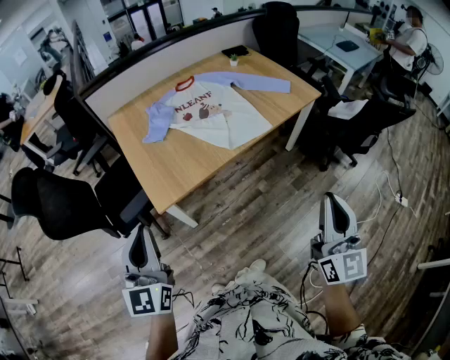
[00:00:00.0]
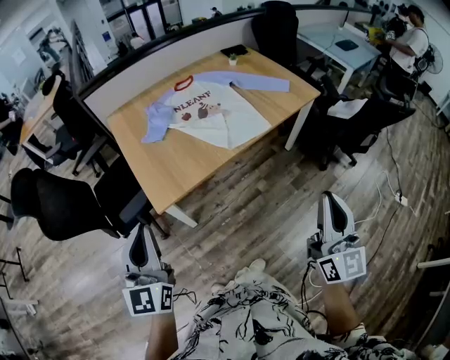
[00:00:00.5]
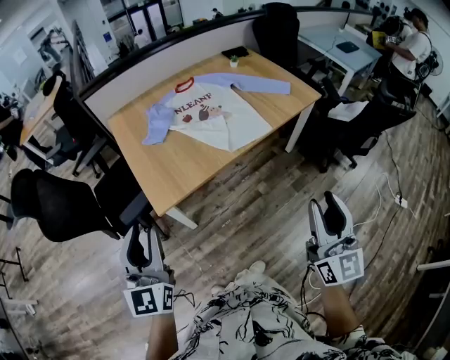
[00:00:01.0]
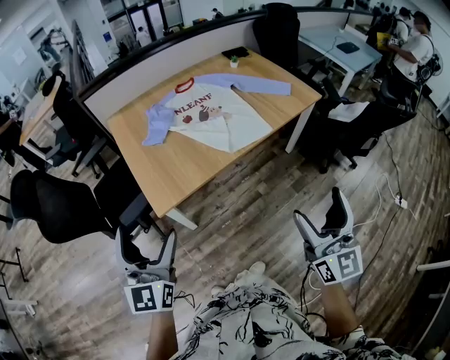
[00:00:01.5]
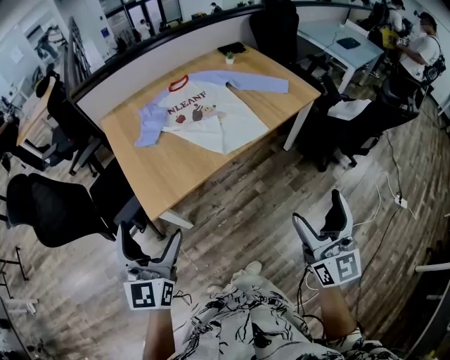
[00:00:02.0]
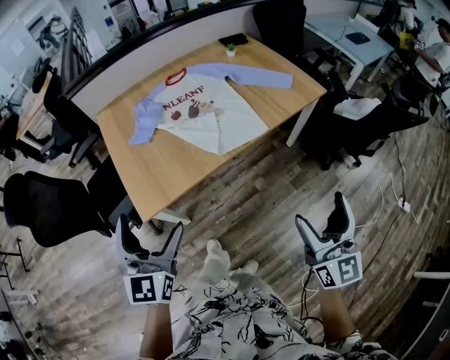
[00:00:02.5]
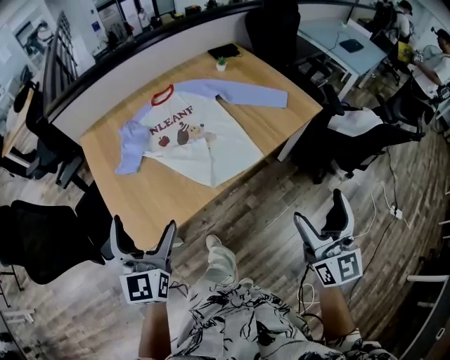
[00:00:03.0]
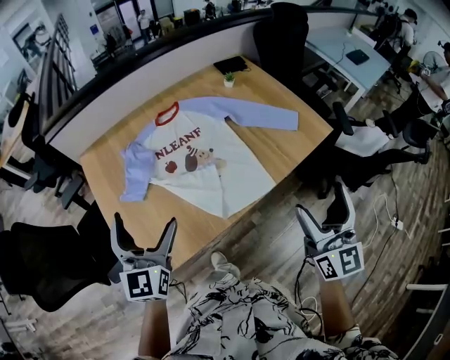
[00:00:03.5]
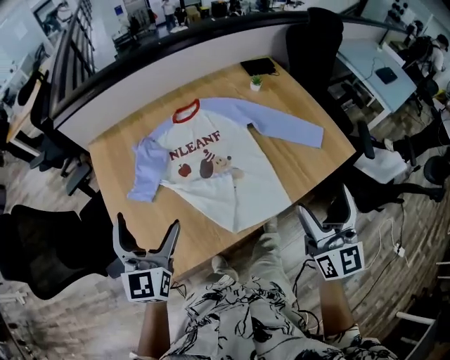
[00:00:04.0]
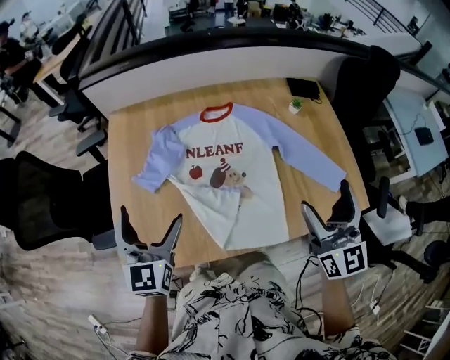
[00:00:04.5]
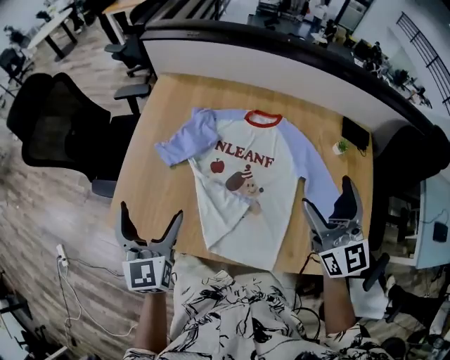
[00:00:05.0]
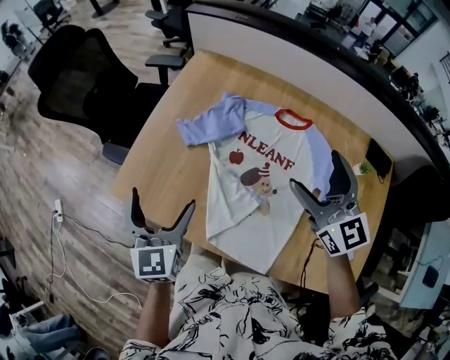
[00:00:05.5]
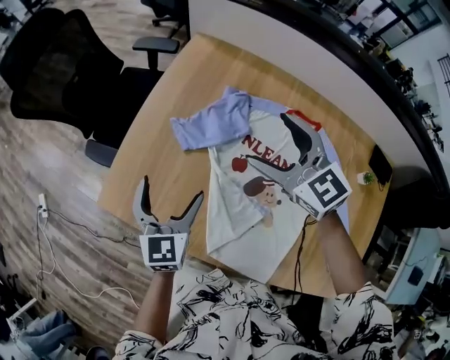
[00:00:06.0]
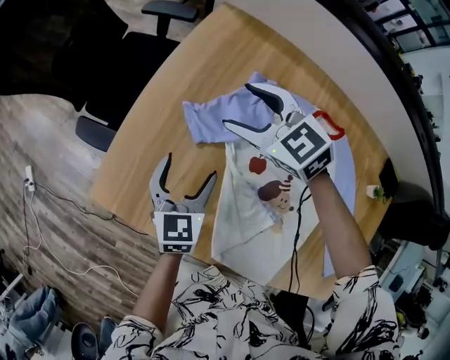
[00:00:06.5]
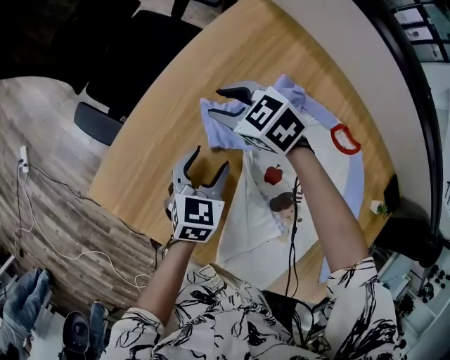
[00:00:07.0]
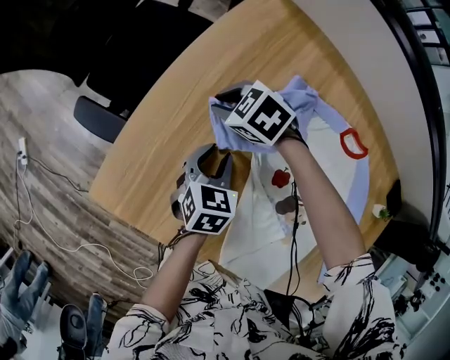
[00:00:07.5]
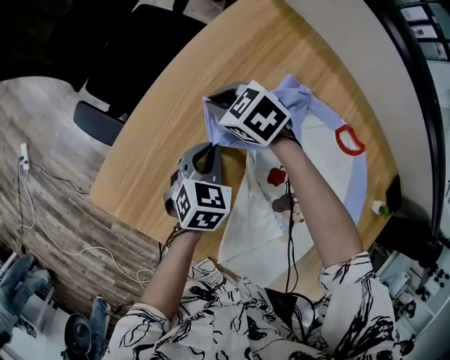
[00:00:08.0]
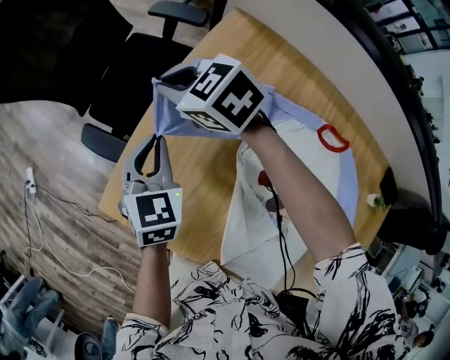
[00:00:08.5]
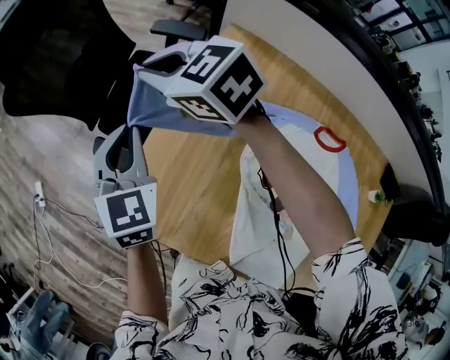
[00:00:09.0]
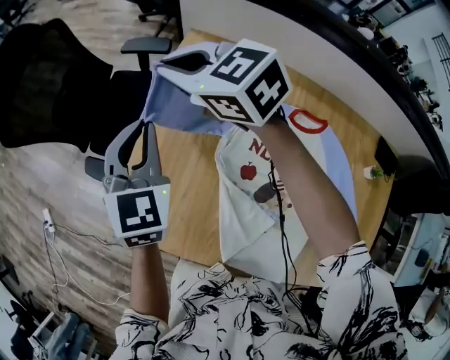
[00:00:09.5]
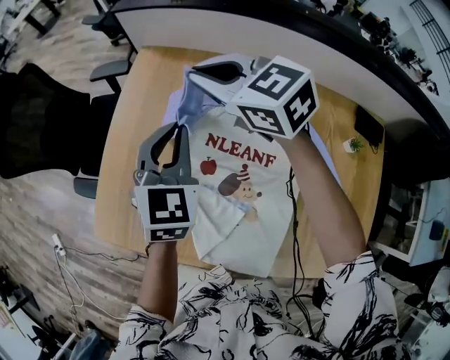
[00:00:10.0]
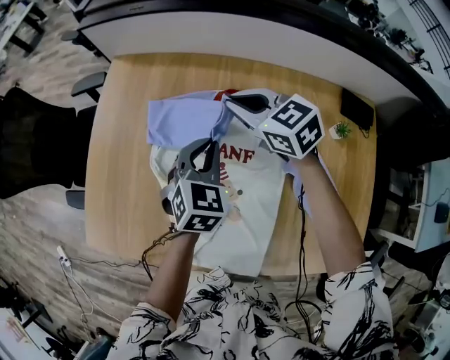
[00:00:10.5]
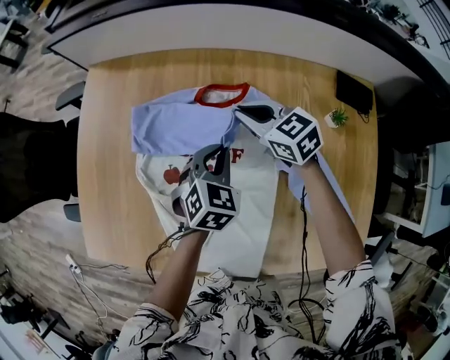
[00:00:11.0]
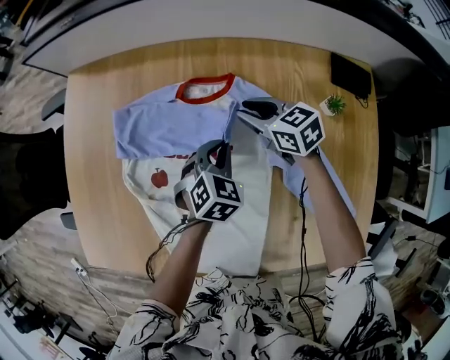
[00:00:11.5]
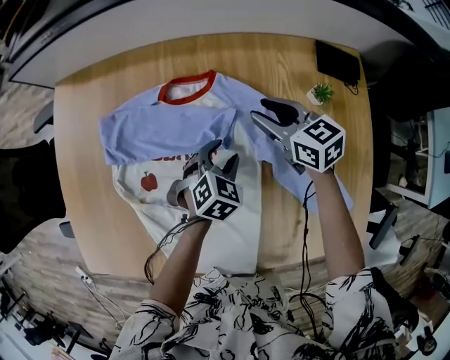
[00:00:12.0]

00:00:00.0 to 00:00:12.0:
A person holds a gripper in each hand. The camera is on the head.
00:00:00.0 to 00:00:02.0: The left gripper moves forward and to the right, about 5 cm, and opens its fingers; the right gripper ends up about 5 cm from where it was, and opens up.
00:00:02.0 to 00:00:04.0: The two grippers go about 40 cm forward.
00:00:04.0 to 00:00:06.0: The right gripper changes place by some 50 cm, and rotates about 90 degrees, while the left gripper is displaced downward by about 15 cm, and changes its angle by approximately 50 degrees.
00:00:06.0 to 00:00:08.0: The right gripper travels downward, forward and to the left by approximately 35 cm, angles its fingers downward, by some 40 degrees, and closes up; the left gripper goes approximately 20 cm downward and forward, changes its angle by roughly 30 degrees, and closes up.
00:00:08.0 to 00:00:10.0: The two grippers go approximately 30 cm upward. The left gripper swivels approximately 30 degrees; the right gripper angles its fingers upward, by some 30 degrees.
00:00:10.0 to 00:00:12.0: The left gripper ends up roughly 40 cm from where it was, and changes its angle by roughly 40 degrees. The right gripper shifts by approximately 40 cm, and swivels roughly 40 degrees.

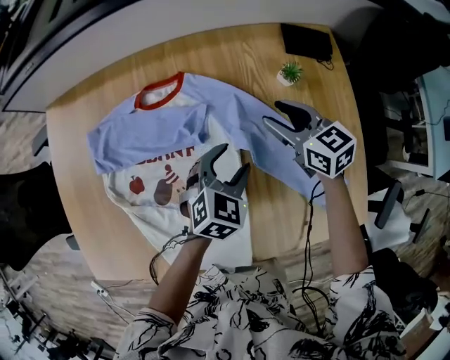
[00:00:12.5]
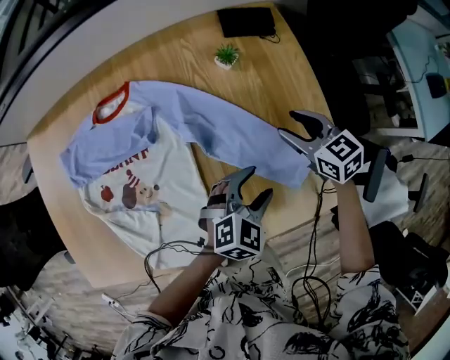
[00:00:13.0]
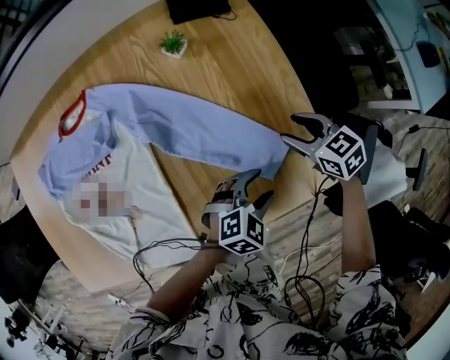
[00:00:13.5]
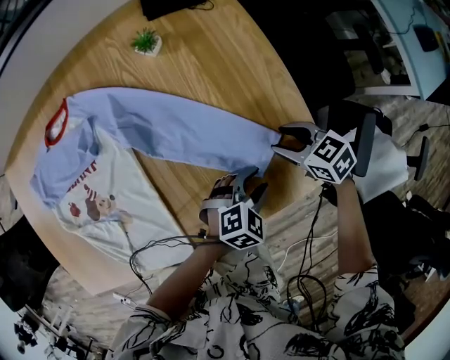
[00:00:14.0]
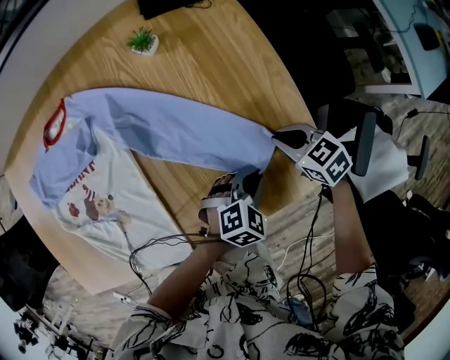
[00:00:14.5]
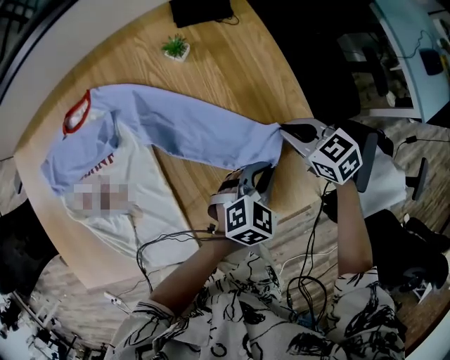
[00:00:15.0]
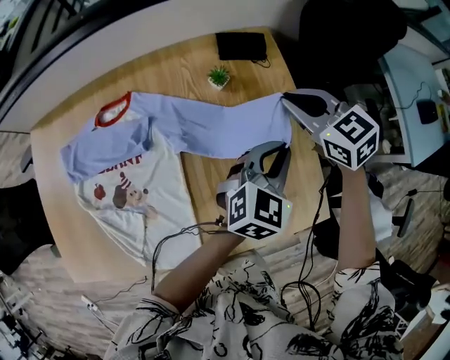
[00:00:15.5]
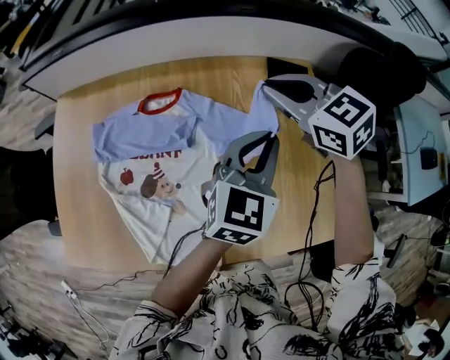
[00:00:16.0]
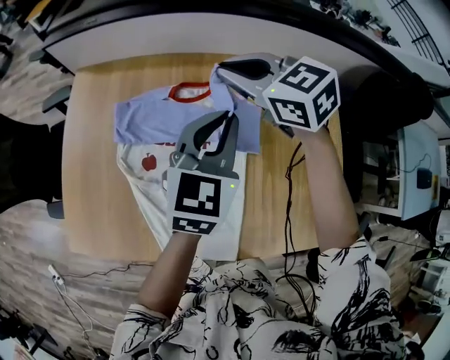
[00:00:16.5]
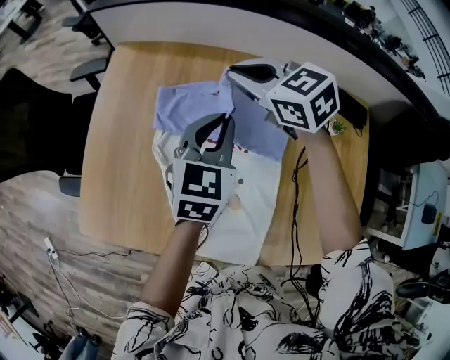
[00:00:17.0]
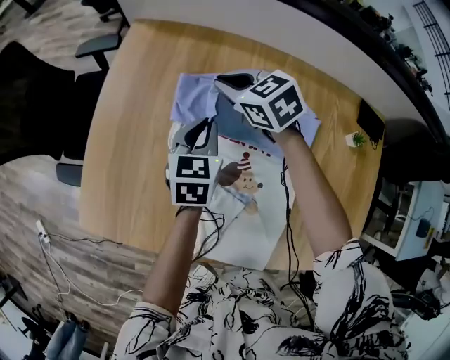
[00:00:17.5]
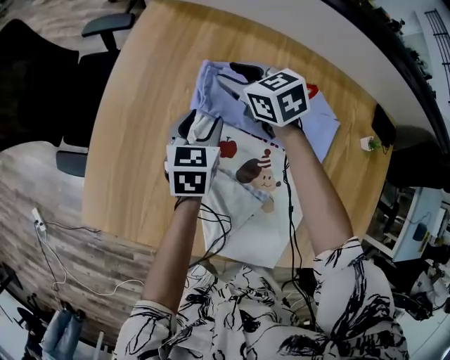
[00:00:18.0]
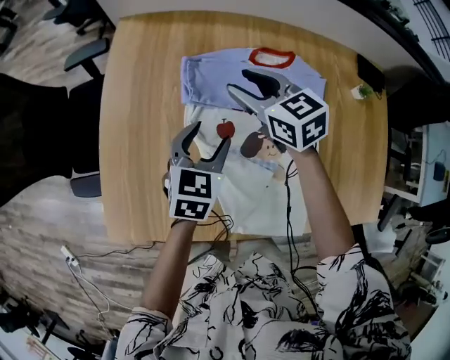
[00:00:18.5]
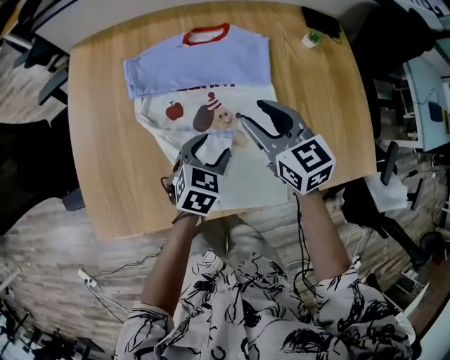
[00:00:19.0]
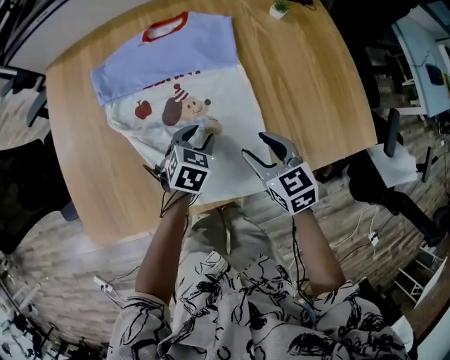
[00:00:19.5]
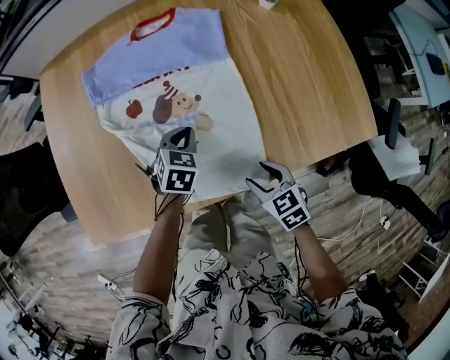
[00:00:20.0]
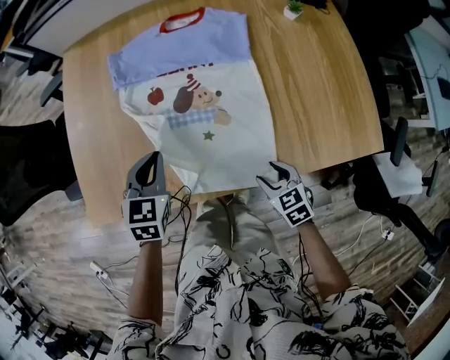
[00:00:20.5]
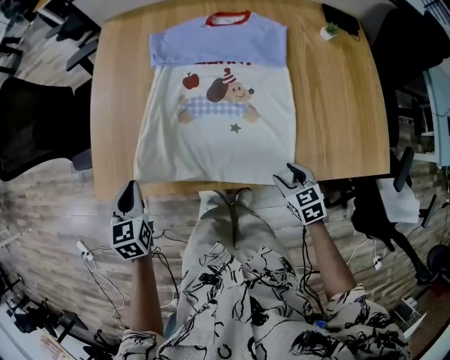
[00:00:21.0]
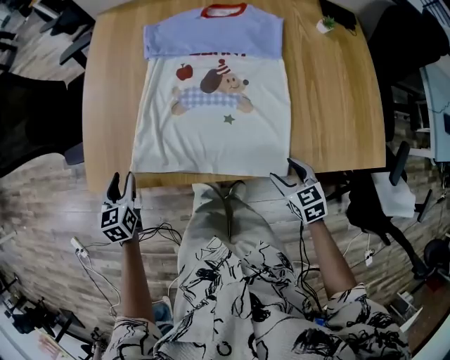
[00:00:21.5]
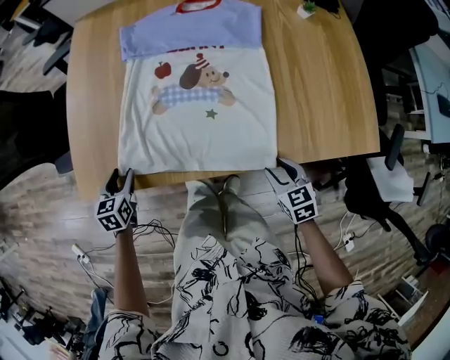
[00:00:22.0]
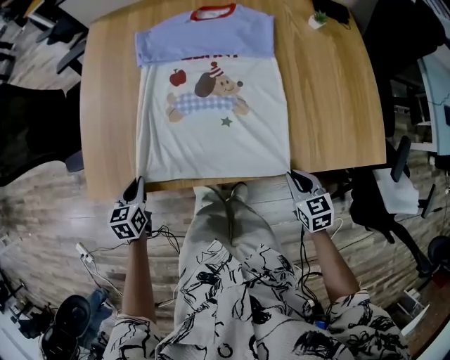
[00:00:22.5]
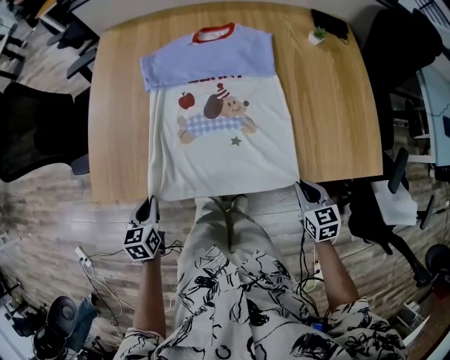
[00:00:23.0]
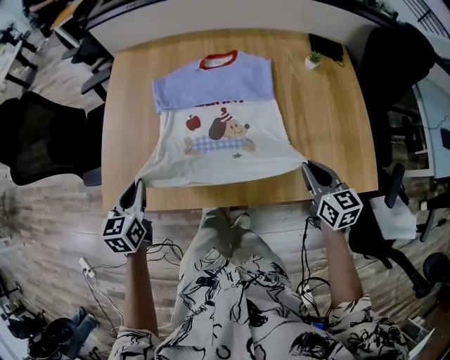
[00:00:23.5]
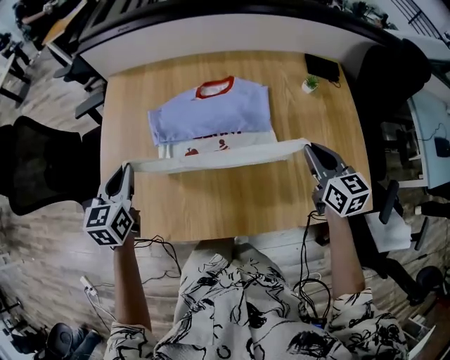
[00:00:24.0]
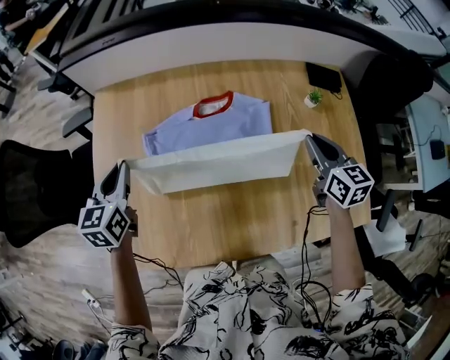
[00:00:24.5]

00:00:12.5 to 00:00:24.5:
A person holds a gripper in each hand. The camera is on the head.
00:00:12.5 to 00:00:14.5: The right gripper shifts by about 40 cm, turns by roughly 20 degrees, and closes; the left gripper changes place by some 40 cm, swivels approximately 30 degrees, and closes up.
00:00:14.5 to 00:00:16.5: Both grippers are carried approximately 50 cm. The left gripper points its fingers about 40 degrees further upward; the right gripper swivels roughly 40 degrees.
00:00:16.5 to 00:00:18.5: Both grippers move to the left and downward, about 30 cm. The right gripper opens up, while the left gripper opens its fingers.
00:00:18.5 to 00:00:20.5: The left gripper goes roughly 15 cm backward, travels to the right and back again, roughly 20 cm each way, and closes. The right gripper travels backward, to the right and downward by roughly 50 cm, and turns by roughly 30 degrees.
00:00:20.5 to 00:00:22.5: The left gripper travels to the left, downward and backward by roughly 25 cm, and rotates roughly 30 degrees, while the right gripper shifts by some 5 cm, and closes.
00:00:22.5 to 00:00:24.5: The two grippers go some 40 cm forward and upward. The left gripper rotates about 20 degrees. Meanwhile the right gripper turns by roughly 20 degrees.

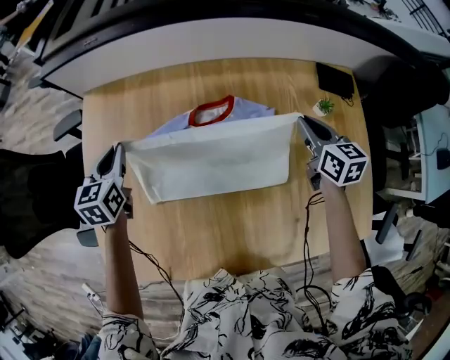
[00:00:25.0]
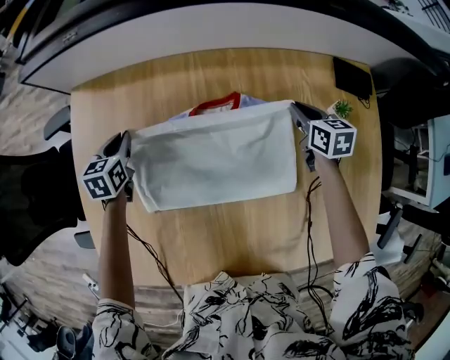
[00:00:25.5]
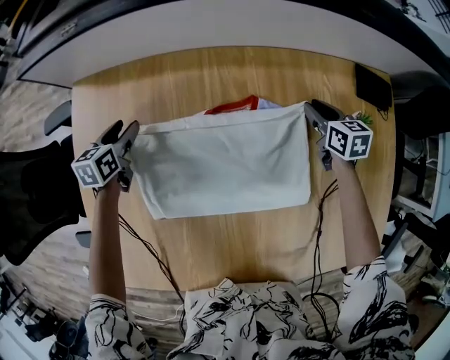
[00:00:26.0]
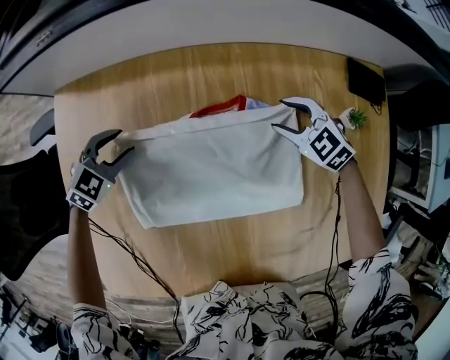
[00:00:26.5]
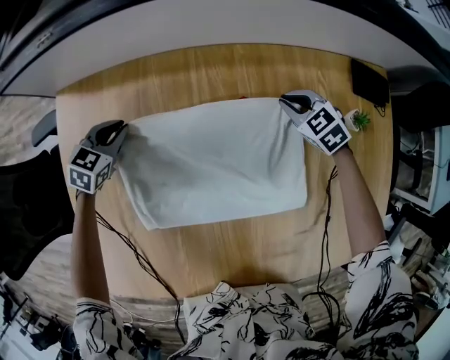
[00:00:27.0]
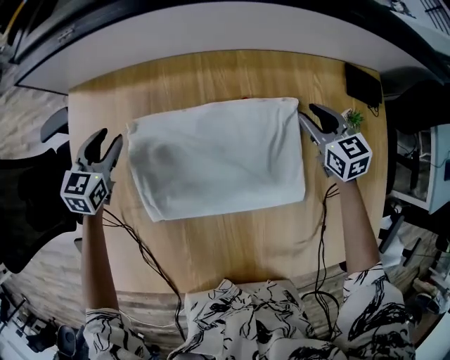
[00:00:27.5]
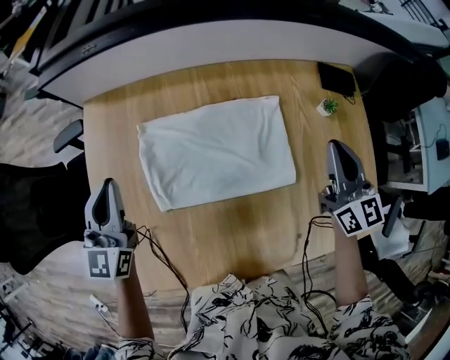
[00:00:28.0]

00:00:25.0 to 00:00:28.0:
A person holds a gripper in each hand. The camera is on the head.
00:00:25.0 to 00:00:26.5: The left gripper moves downward and forward, approximately 20 cm, and twists some 50 degrees clockwise, seen from behind. Meanwhile the right gripper travels downward, forward and to the left by roughly 20 cm, rolls counterclockwise, seen from behind, by some 50 degrees, and opens up.
00:00:26.5 to 00:00:28.0: The grippers both shift upward and backward by about 30 cm. The right gripper points its fingers approximately 40 degrees further upward, and closes. The left gripper angles its fingers upward, by about 40 degrees, and closes.
